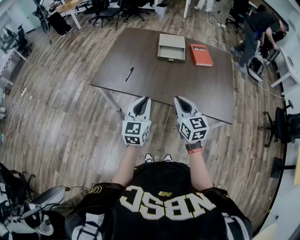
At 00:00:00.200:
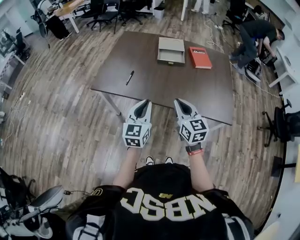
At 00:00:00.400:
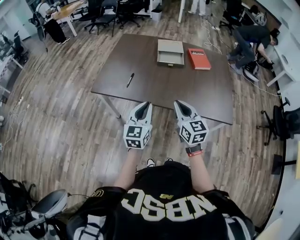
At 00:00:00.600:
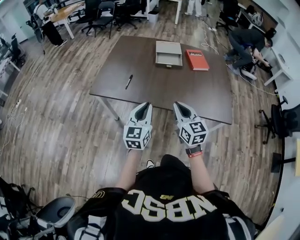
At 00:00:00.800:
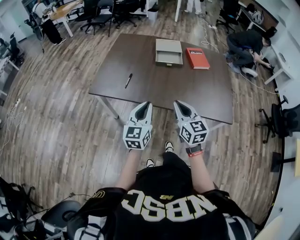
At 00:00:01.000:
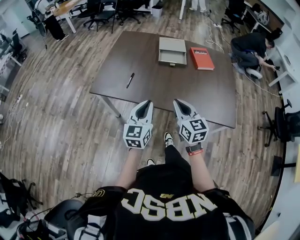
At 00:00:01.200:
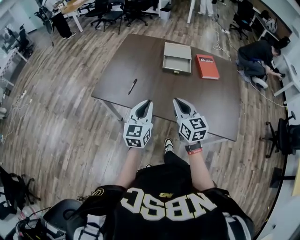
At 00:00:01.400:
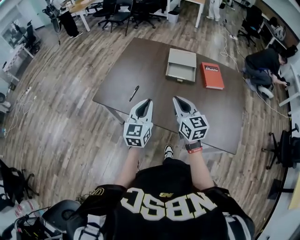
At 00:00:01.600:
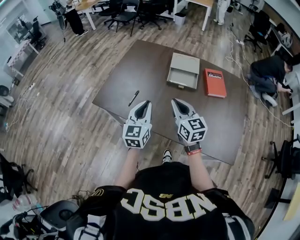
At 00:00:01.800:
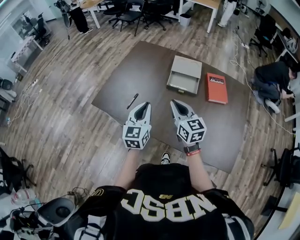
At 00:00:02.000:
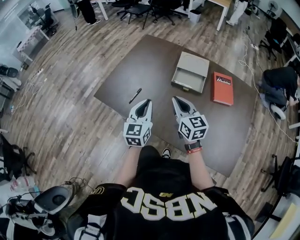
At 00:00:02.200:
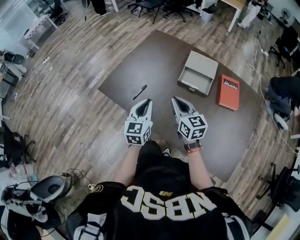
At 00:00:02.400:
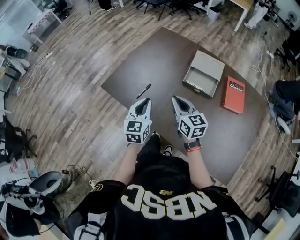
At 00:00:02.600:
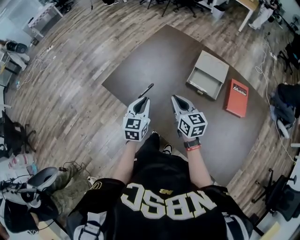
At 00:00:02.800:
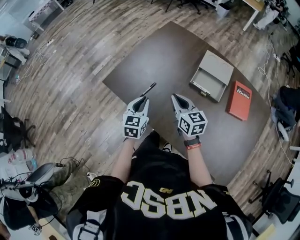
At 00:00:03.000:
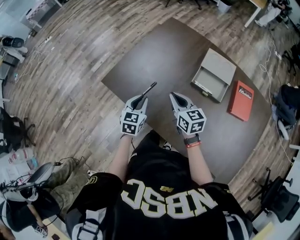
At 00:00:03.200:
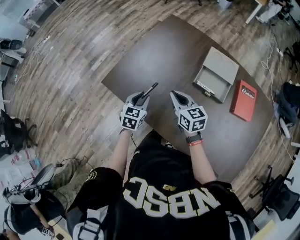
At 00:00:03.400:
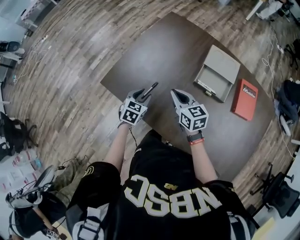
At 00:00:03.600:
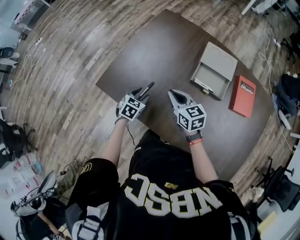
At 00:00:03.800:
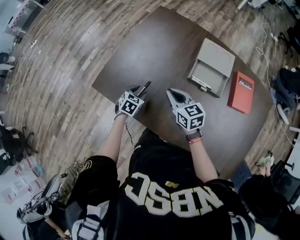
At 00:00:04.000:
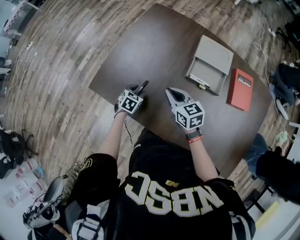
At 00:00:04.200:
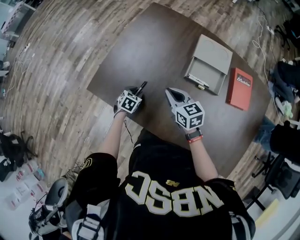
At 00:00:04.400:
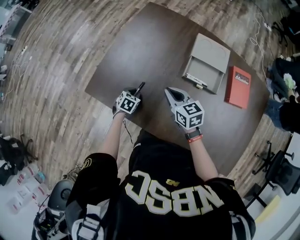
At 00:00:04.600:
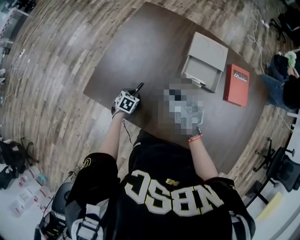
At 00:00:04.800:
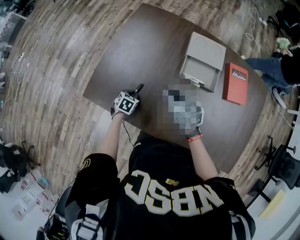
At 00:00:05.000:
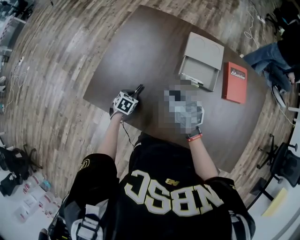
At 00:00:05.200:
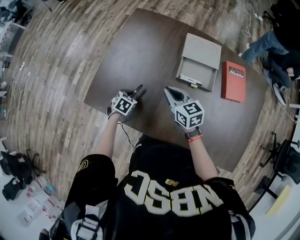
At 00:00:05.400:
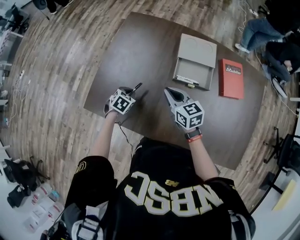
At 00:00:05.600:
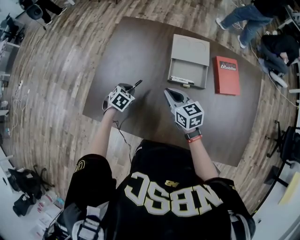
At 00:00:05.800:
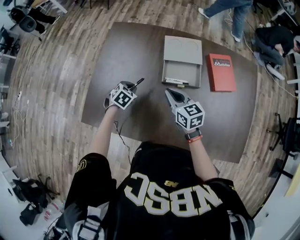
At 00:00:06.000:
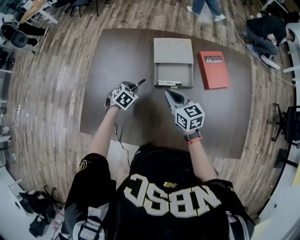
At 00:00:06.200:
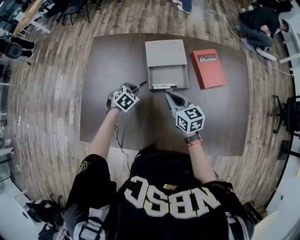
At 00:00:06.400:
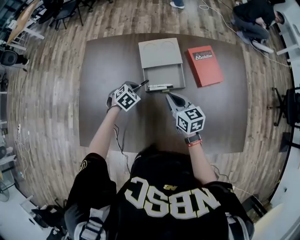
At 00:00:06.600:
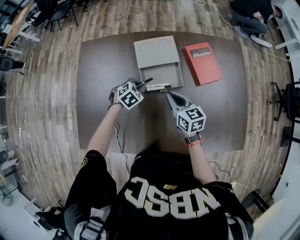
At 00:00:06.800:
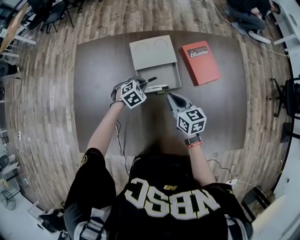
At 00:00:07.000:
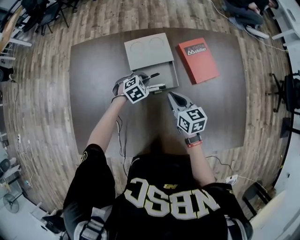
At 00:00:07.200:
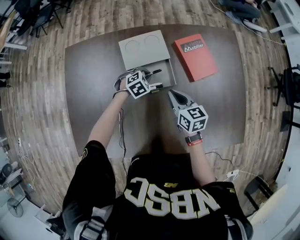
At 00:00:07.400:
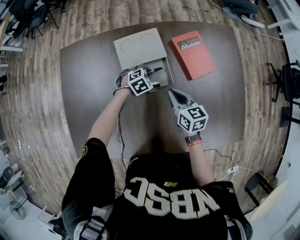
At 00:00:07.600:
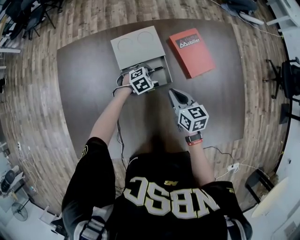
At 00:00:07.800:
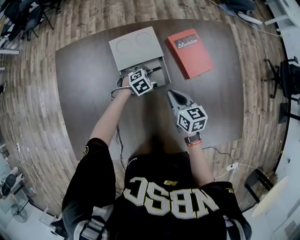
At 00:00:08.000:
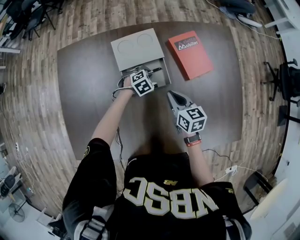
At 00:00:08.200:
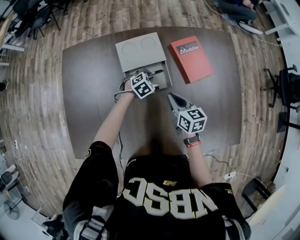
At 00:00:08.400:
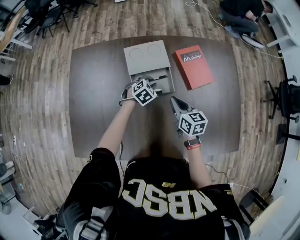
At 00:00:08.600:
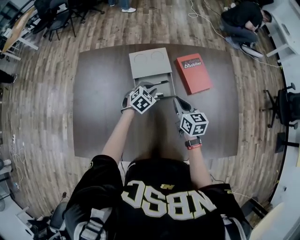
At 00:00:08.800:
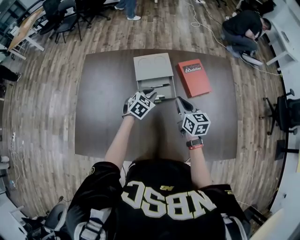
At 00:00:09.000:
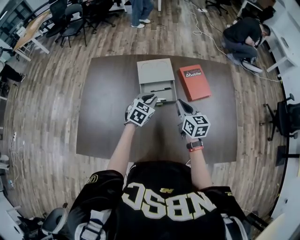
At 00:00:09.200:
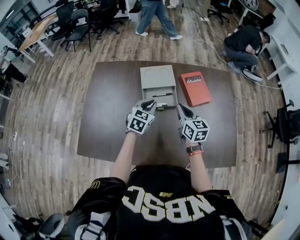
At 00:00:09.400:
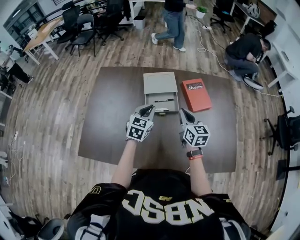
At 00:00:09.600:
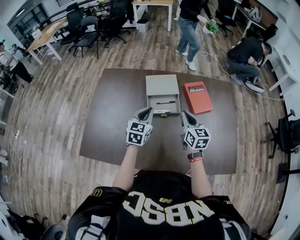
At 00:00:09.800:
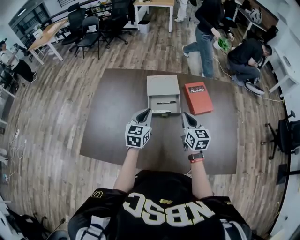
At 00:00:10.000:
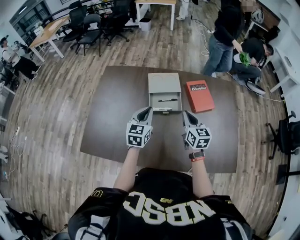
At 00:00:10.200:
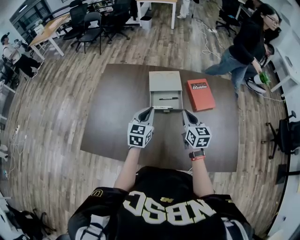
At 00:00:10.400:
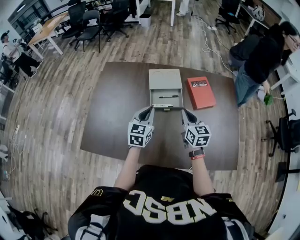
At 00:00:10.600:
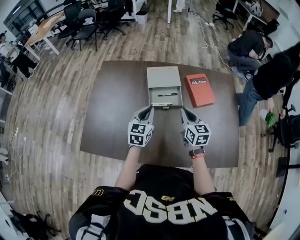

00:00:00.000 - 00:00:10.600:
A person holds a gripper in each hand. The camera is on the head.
00:00:00.000 - 00:00:01.600: Both grippers move forward, roughly 20 cm.
00:00:01.600 - 00:00:03.000: The right gripper shifts approximately 20 cm forward, downward and to the left, and swivels roughly 20 degrees; the left gripper shifts some 20 cm downward, forward and to the left, and rotates some 30 degrees.
00:00:03.000 - 00:00:04.600: The left gripper travels downward and forward by some 20 cm, tips its fingers downward by roughly 30 degrees, and opens, then closes again. The right gripper heads forward, covering about 5 cm.
00:00:04.600 - 00:00:06.000: The right gripper travels to the right by roughly 10 cm, and changes its angle by approximately 20 degrees; the left gripper goes roughly 20 cm to the right, forward and upward, and changes its angle by some 30 degrees.
00:00:06.000 - 00:00:07.600: The right gripper shifts by approximately 15 cm, and changes its angle by some 20 degrees, while the left gripper shifts by roughly 25 cm, and rotates approximately 40 degrees.
00:00:07.600 - 00:00:09.000: The right gripper is displaced upward by some 10 cm, while the left gripper heads upward and backward, covering approximately 20 cm, and turns by approximately 40 degrees.
00:00:09.000 - 00:00:10.600: The left gripper moves backward, upward and to the left, approximately 10 cm, and rotates some 30 degrees.

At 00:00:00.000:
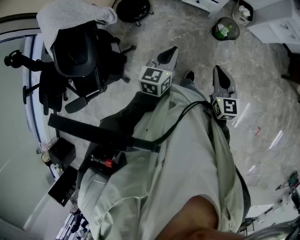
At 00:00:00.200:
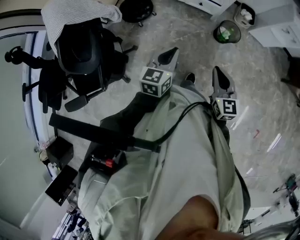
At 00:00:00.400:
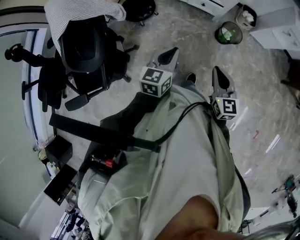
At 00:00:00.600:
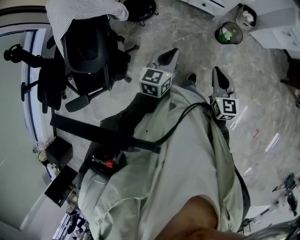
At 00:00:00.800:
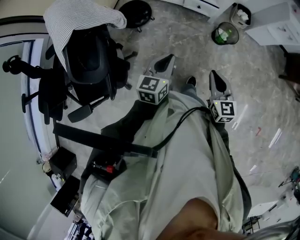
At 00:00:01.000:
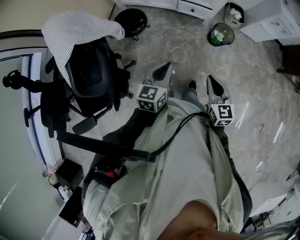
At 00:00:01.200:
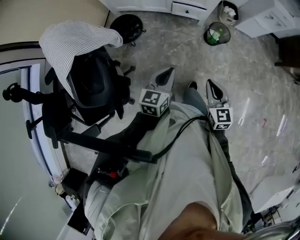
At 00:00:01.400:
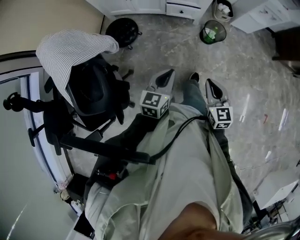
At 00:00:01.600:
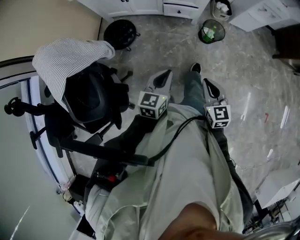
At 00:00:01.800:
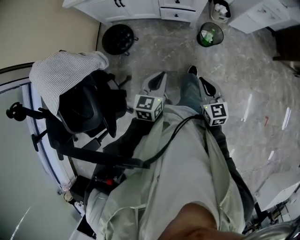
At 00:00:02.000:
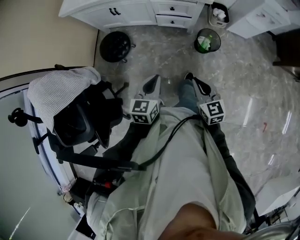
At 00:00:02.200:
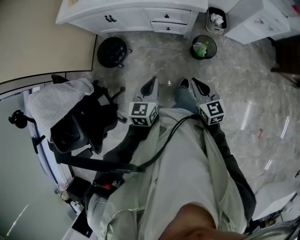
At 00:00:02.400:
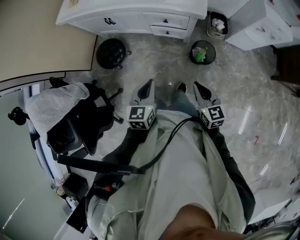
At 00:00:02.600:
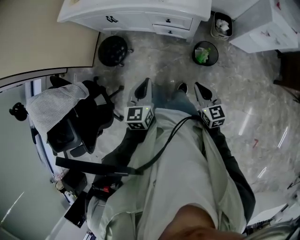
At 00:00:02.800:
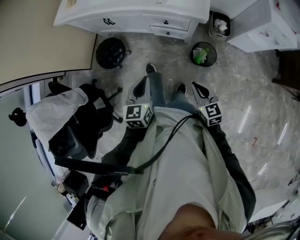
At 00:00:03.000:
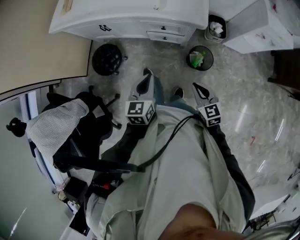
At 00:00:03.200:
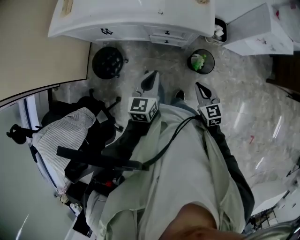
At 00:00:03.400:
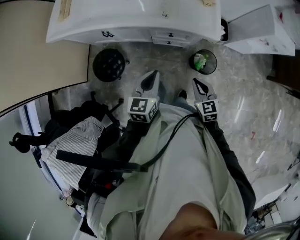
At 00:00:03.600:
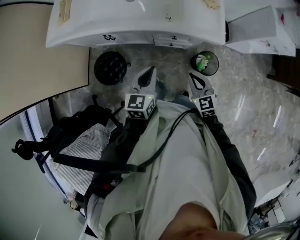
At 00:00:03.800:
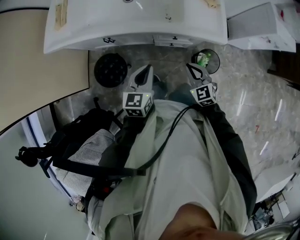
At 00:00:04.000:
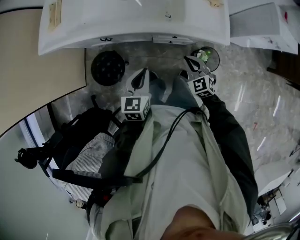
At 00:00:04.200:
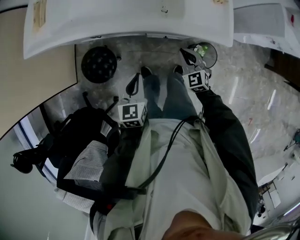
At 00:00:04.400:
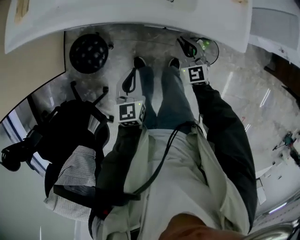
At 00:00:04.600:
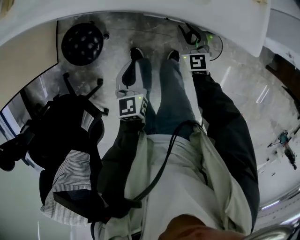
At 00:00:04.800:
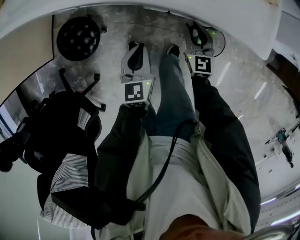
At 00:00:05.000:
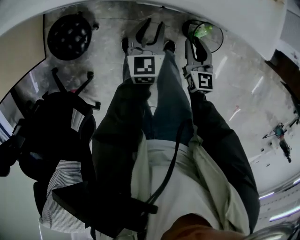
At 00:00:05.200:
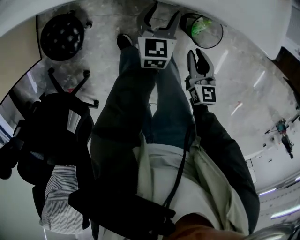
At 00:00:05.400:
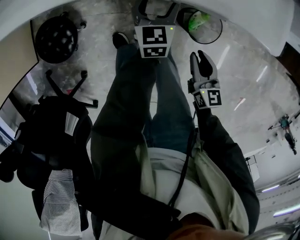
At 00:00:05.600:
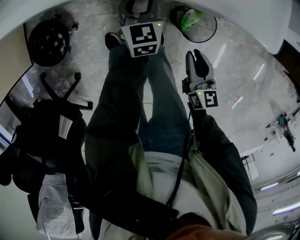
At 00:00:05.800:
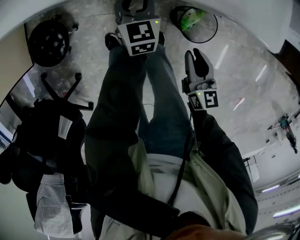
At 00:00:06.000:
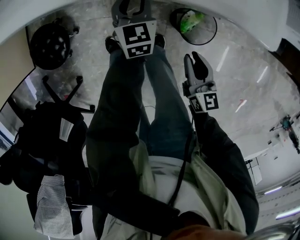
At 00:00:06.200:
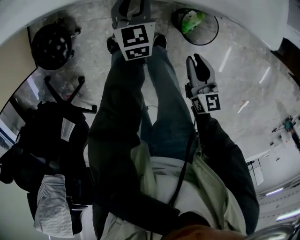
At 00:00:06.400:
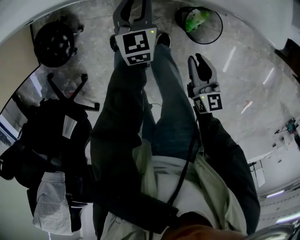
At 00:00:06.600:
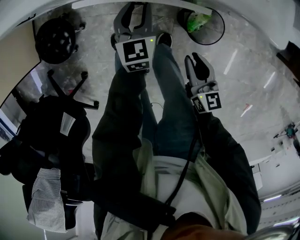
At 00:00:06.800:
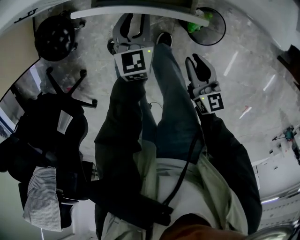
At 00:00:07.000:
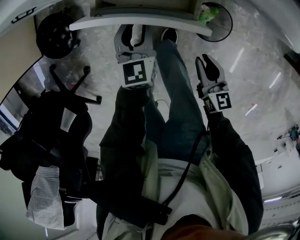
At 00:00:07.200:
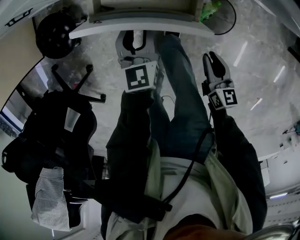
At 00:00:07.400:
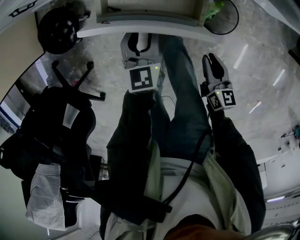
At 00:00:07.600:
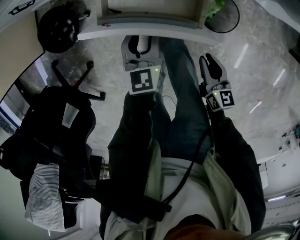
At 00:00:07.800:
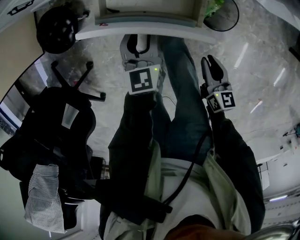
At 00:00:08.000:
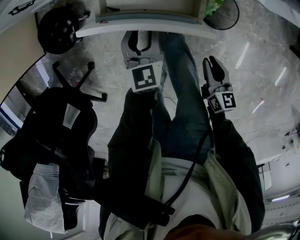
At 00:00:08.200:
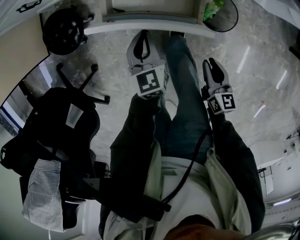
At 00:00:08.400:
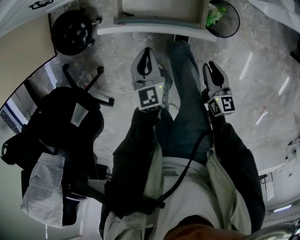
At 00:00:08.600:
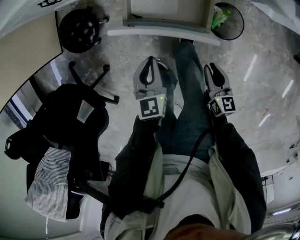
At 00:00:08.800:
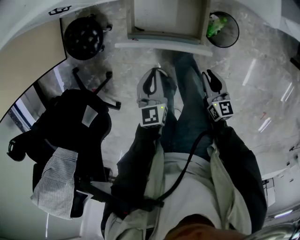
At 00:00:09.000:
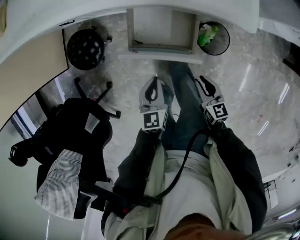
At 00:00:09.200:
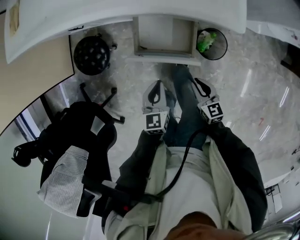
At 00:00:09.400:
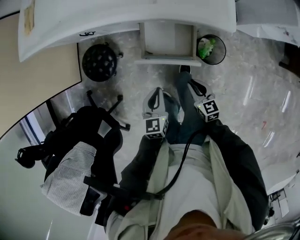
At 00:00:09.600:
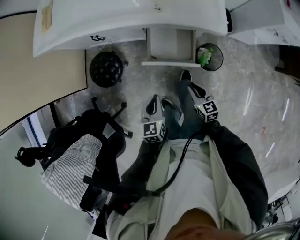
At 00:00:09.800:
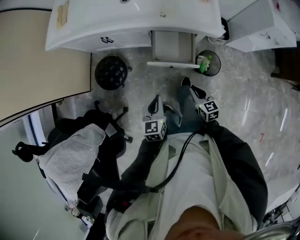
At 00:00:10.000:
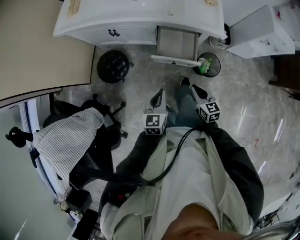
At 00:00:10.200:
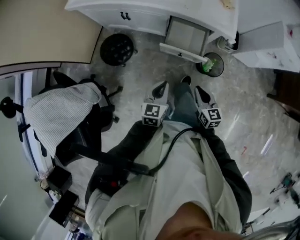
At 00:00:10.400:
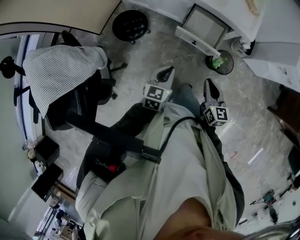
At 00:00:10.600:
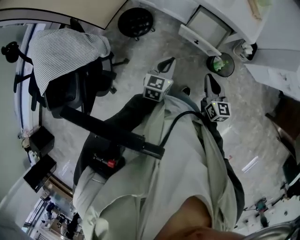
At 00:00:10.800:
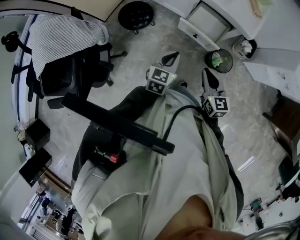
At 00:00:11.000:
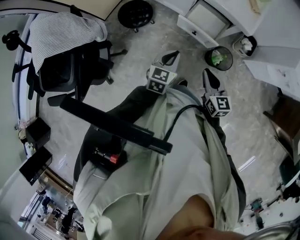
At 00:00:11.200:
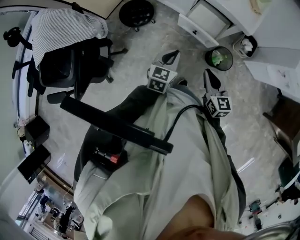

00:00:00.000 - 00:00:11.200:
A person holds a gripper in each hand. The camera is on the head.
00:00:00.000 - 00:00:01.600: The right gripper goes approximately 5 cm to the left.
00:00:01.600 - 00:00:03.200: The right gripper moves forward and to the right, some 30 cm, while the left gripper goes some 30 cm forward.
00:00:03.200 - 00:00:04.800: The right gripper heads forward and downward, covering approximately 35 cm. The left gripper heads downward and forward, covering about 25 cm.
00:00:04.800 - 00:00:06.400: The right gripper is displaced backward and to the right by some 20 cm, and turns by about 30 degrees; the left gripper is displaced to the right, forward and downward by about 20 cm, and opens.
00:00:06.400 - 00:00:08.000: The left gripper travels backward by roughly 15 cm, while the right gripper moves backward and downward, roughly 15 cm.
00:00:08.000 - 00:00:09.600: The left gripper heads upward, to the left and backward, covering roughly 20 cm, and closes its fingers, while the right gripper travels upward, to the left and forward by some 20 cm.
00:00:09.600 - 00:00:11.200: The two grippers go about 20 cm upward and backward. The right gripper rotates about 20 degrees.

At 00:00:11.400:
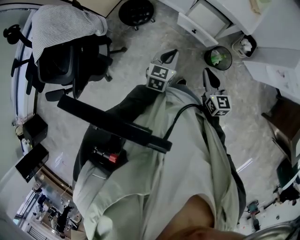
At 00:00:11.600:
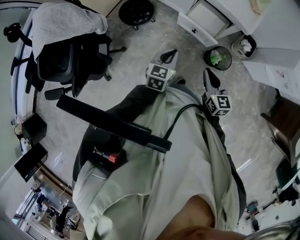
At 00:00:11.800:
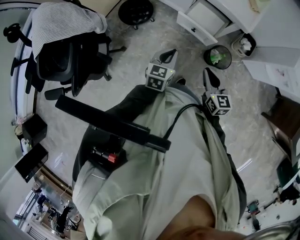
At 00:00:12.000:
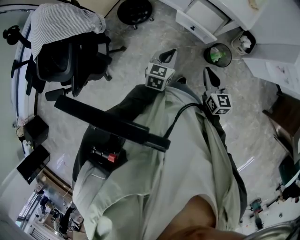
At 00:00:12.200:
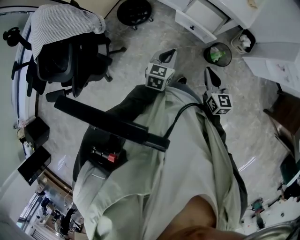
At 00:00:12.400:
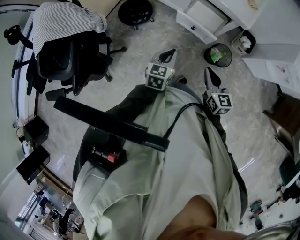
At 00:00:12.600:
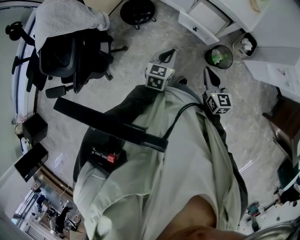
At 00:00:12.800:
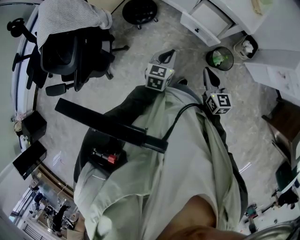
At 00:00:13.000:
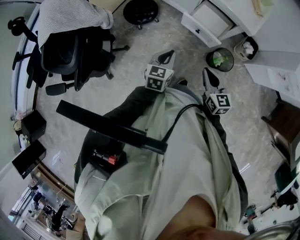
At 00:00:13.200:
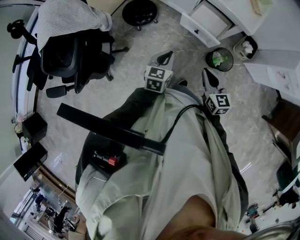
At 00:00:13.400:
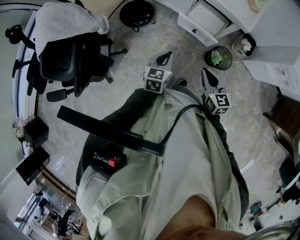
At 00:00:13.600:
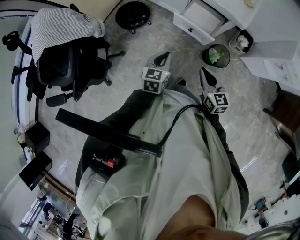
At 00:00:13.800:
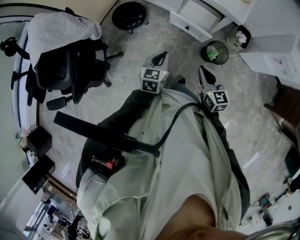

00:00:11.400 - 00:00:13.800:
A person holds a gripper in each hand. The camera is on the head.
00:00:11.400 - 00:00:13.800: The grippers stay close to where they were, moving slightly.
